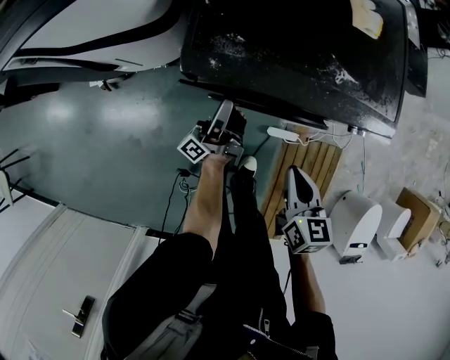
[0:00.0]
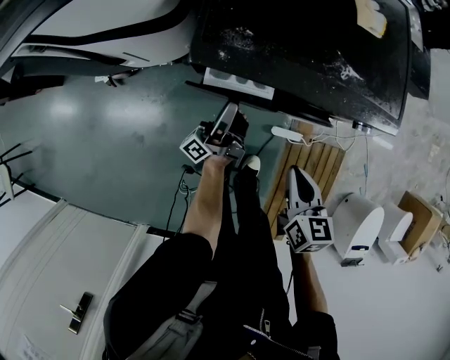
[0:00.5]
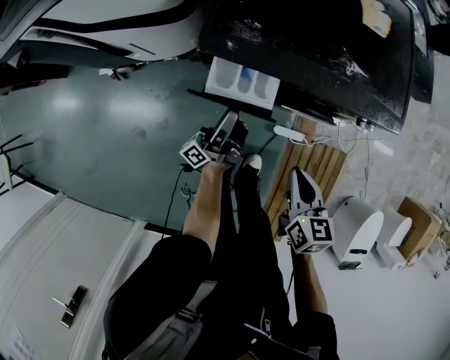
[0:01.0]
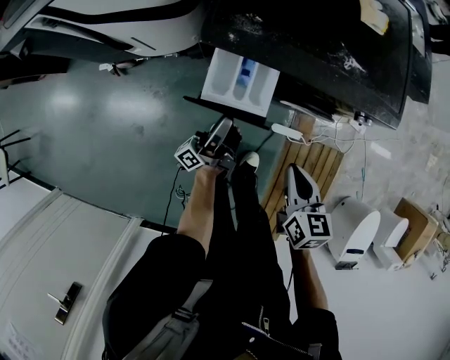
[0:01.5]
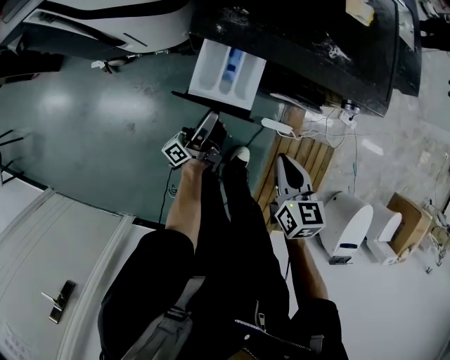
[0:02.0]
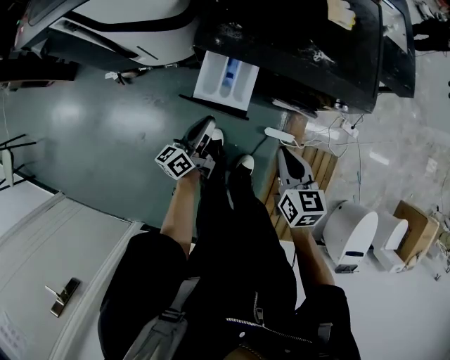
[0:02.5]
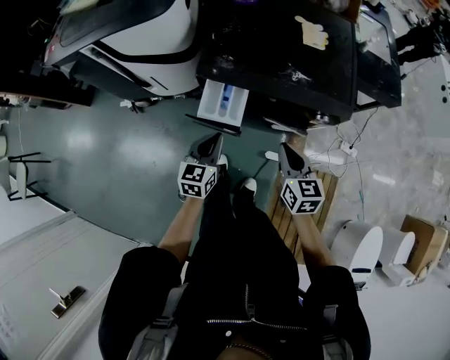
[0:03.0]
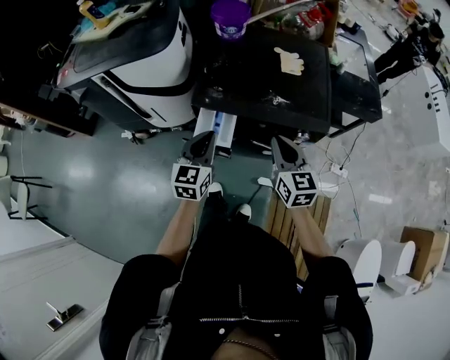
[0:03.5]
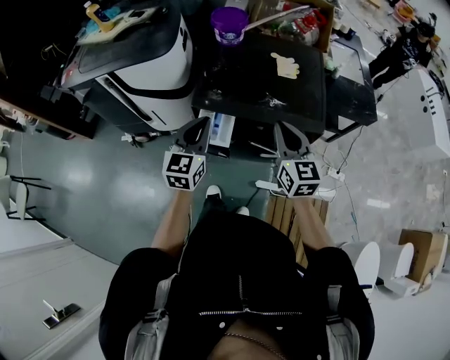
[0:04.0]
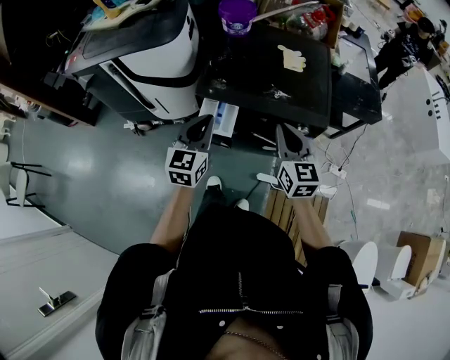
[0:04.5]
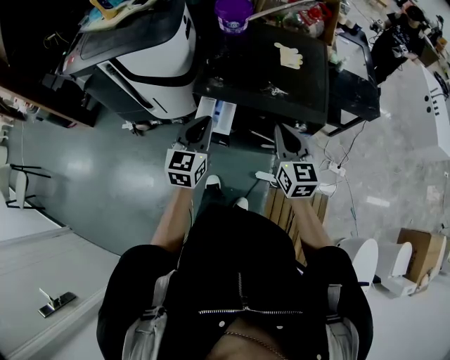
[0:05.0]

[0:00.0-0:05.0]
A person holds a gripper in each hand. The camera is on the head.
0:00.0 to 0:02.5: The right gripper changes place by approximately 5 cm, while the left gripper goes some 15 cm backward, tips its fingers downward by roughly 30 degrees, and closes up.
0:02.5 to 0:05.0: The two grippers go about 25 cm upward. The right gripper changes its angle by about 30 degrees; the left gripper rotates around the line of its fingers by some 50 degrees, clockwise from behind.

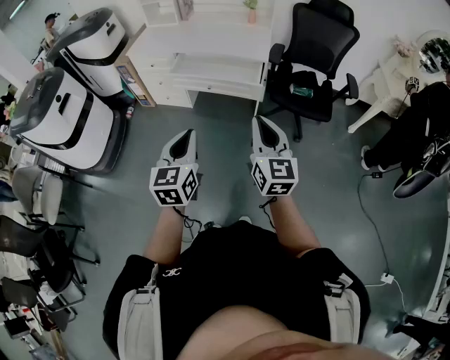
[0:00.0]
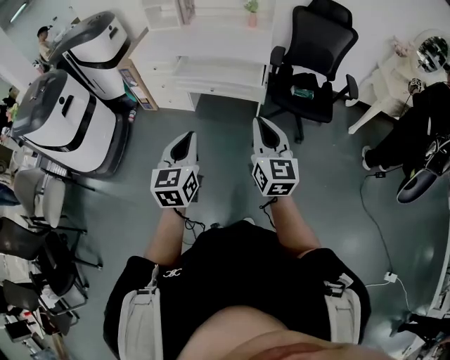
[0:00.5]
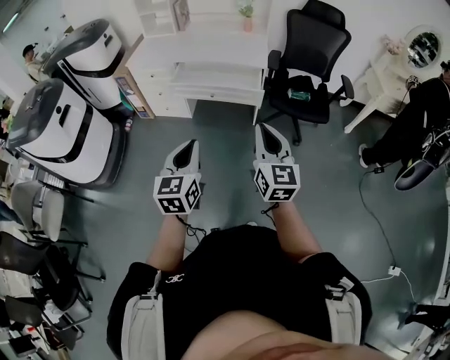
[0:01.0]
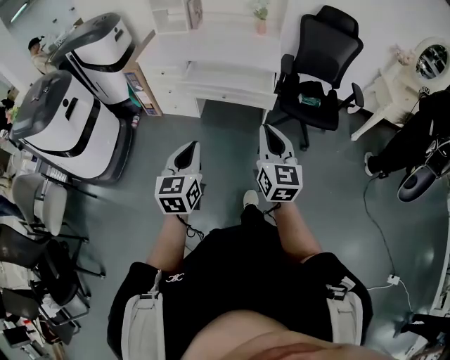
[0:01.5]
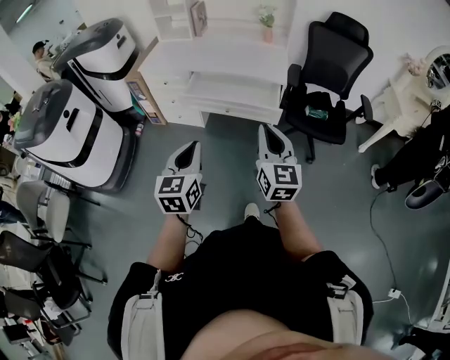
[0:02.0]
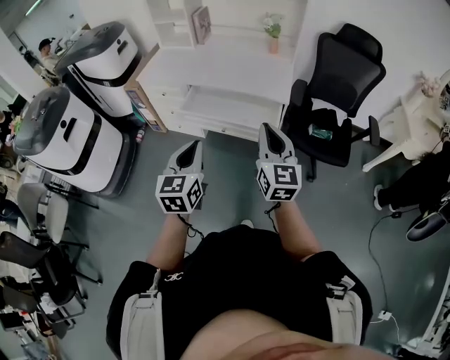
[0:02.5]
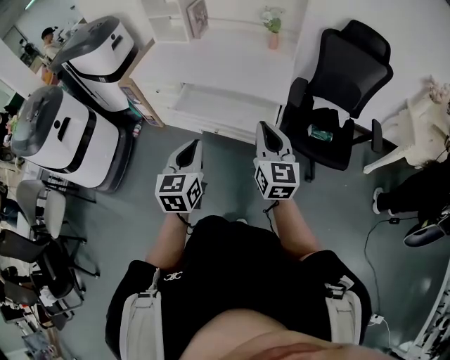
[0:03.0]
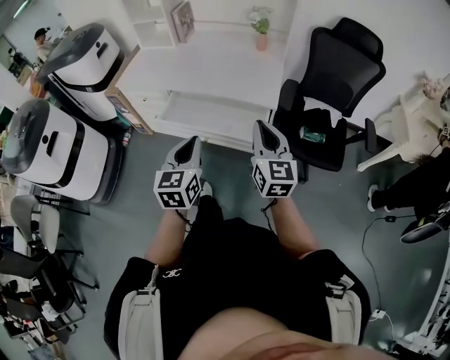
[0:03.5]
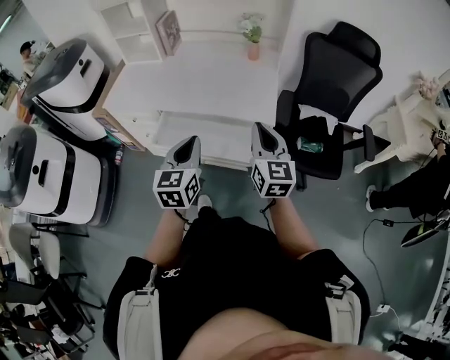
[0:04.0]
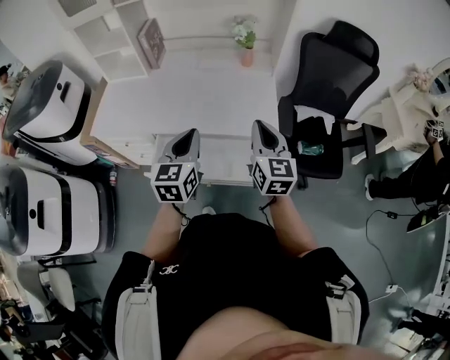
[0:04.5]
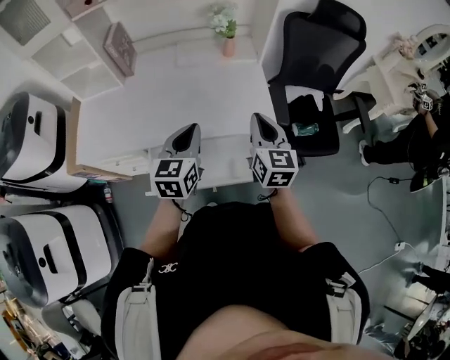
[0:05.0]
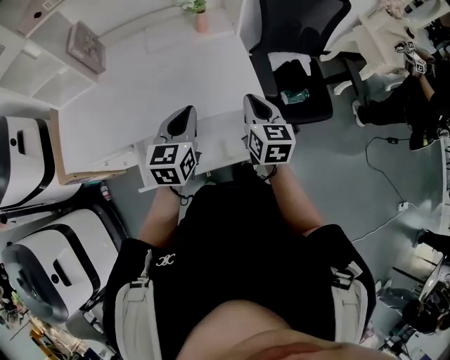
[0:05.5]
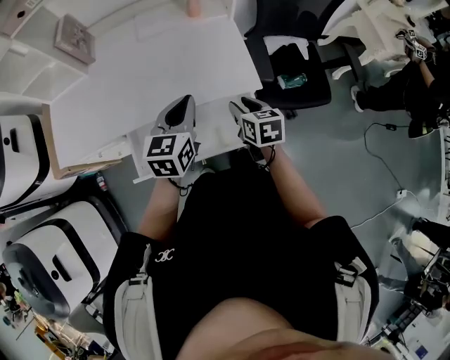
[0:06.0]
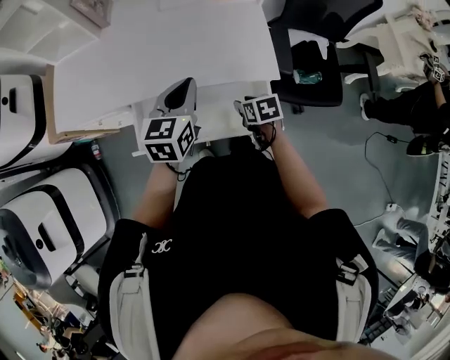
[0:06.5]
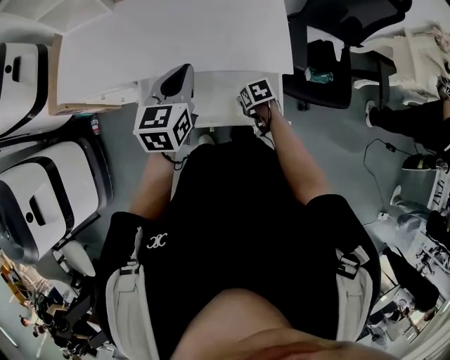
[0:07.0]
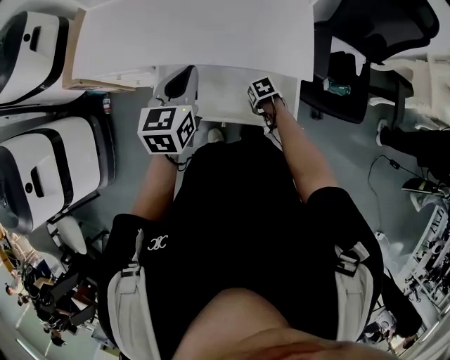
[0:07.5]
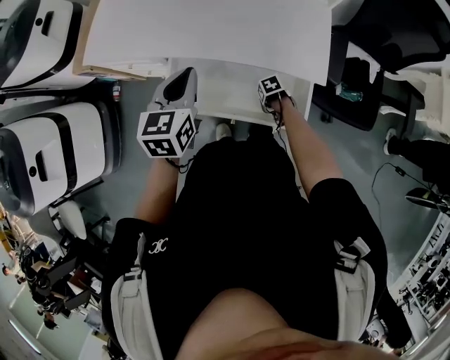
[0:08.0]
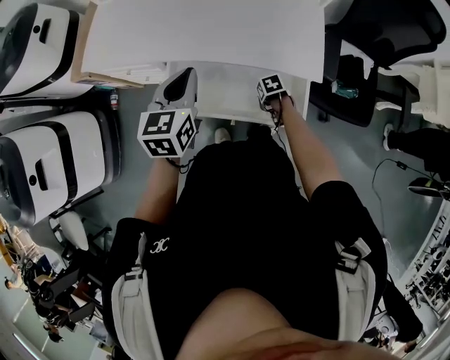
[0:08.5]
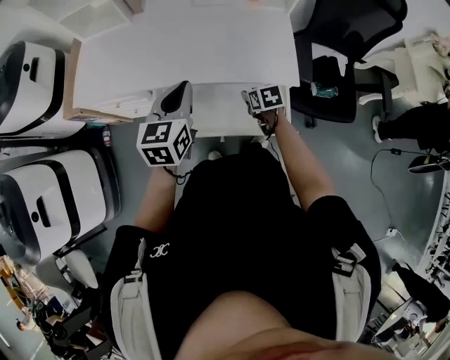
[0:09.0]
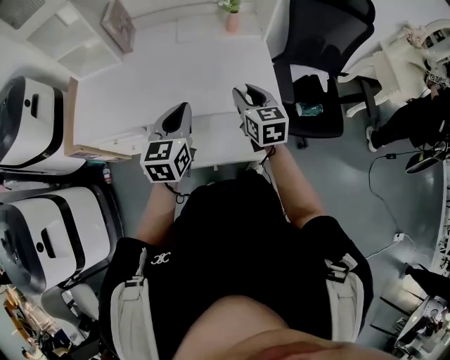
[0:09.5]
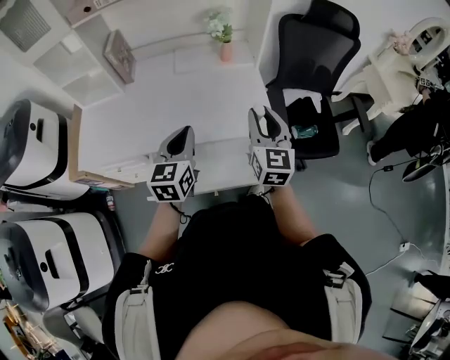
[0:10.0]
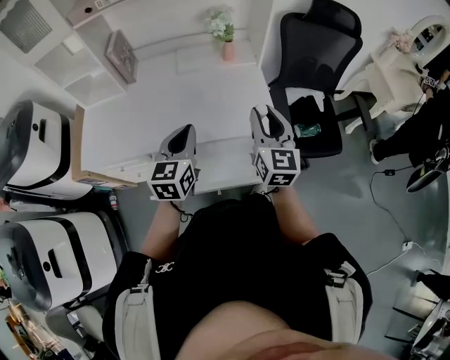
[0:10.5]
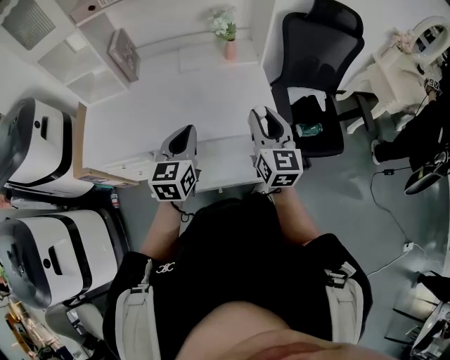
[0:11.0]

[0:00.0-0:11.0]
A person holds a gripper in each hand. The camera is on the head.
0:00.0 to 0:02.0: The right gripper shifts roughly 10 cm forward and to the left, while the left gripper is displaced to the left and forward by approximately 15 cm.
0:02.0 to 0:03.5: The grippers both shift forward and to the right by roughly 30 cm.
0:03.5 to 0:05.5: The left gripper moves roughly 40 cm, and changes its angle by some 30 degrees; the right gripper moves about 30 cm, and turns by approximately 30 degrees.
0:05.5 to 0:07.5: The left gripper changes place by some 10 cm. The right gripper goes some 35 cm downward, tilts its fingers about 60 degrees downward, and opens up.
0:07.5 to 0:09.0: The right gripper travels upward by approximately 15 cm, and swivels approximately 30 degrees.
0:09.0 to 0:11.0: The right gripper moves upward, approximately 30 cm, and angles its fingers upward, by roughly 50 degrees, while the left gripper moves approximately 5 cm.

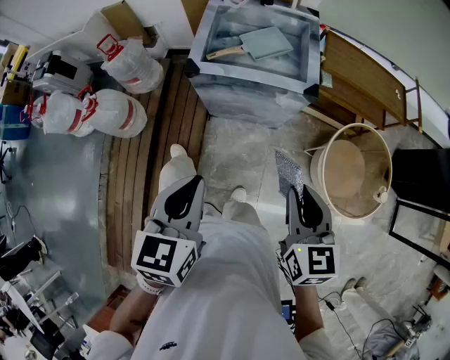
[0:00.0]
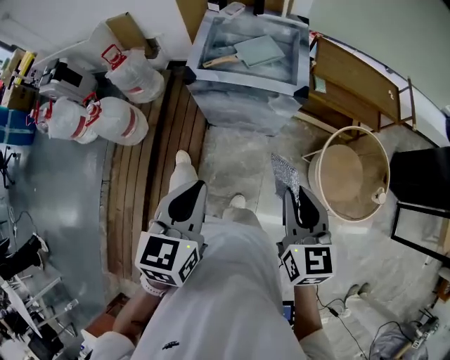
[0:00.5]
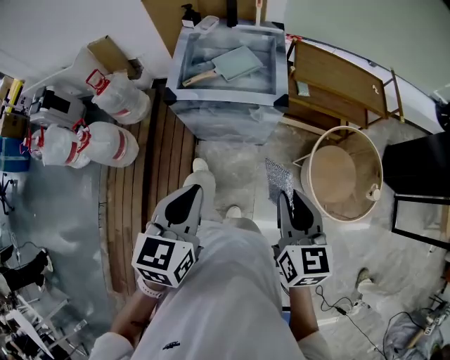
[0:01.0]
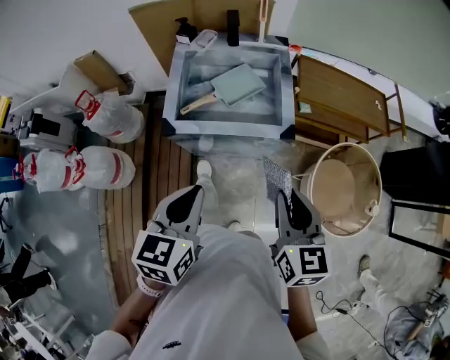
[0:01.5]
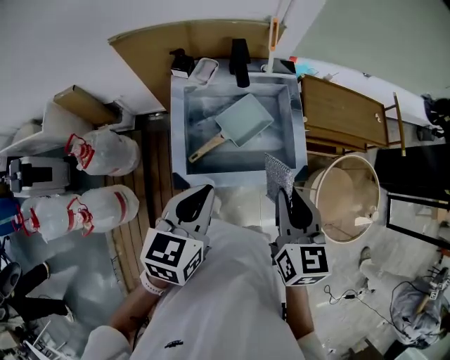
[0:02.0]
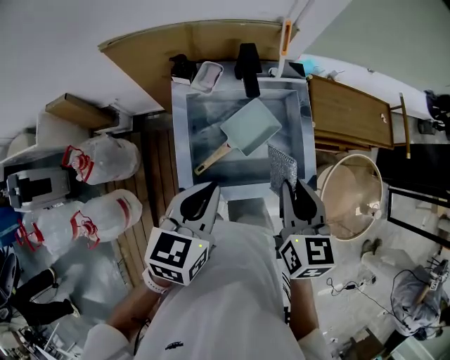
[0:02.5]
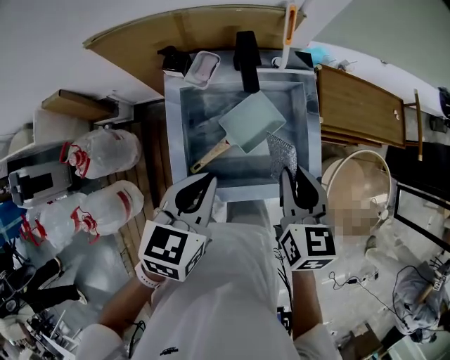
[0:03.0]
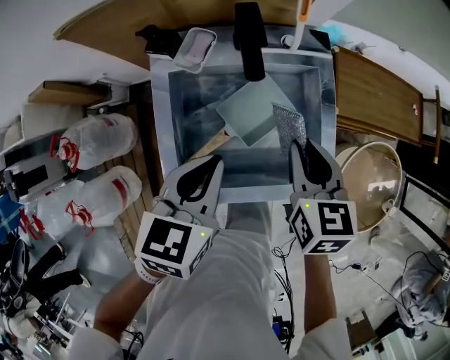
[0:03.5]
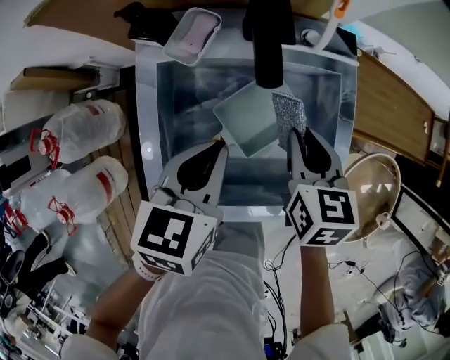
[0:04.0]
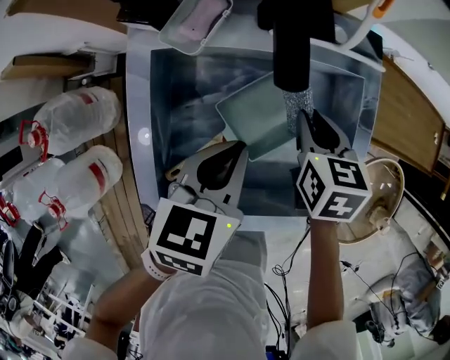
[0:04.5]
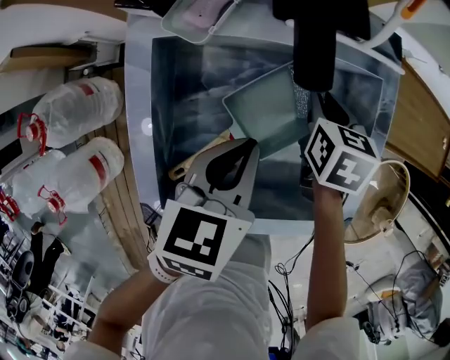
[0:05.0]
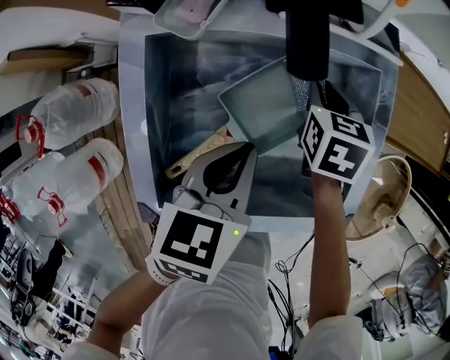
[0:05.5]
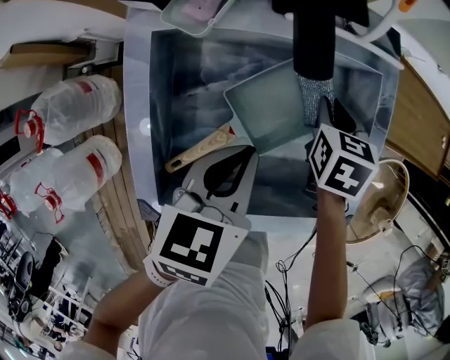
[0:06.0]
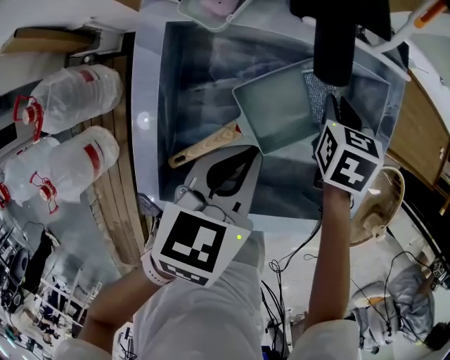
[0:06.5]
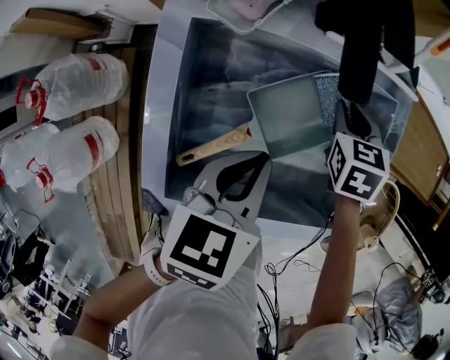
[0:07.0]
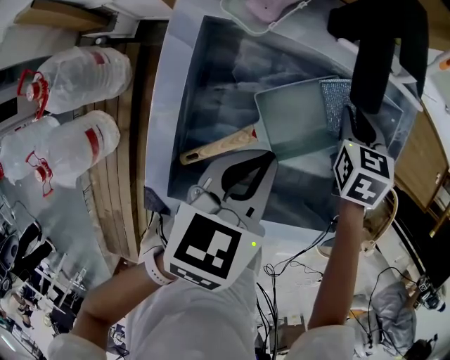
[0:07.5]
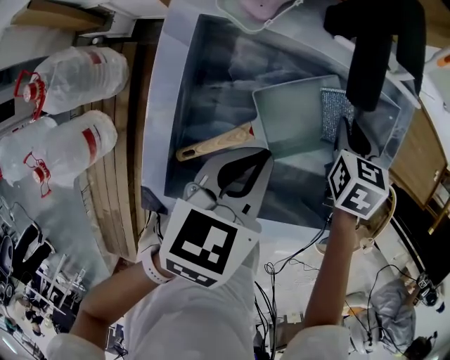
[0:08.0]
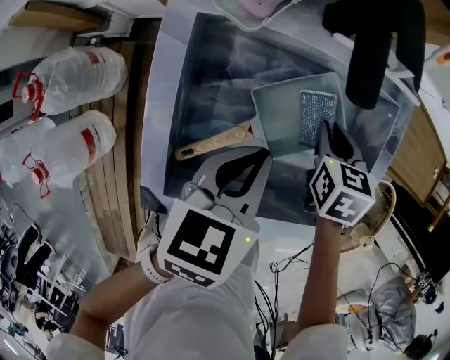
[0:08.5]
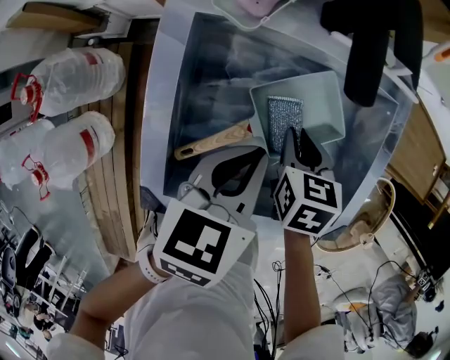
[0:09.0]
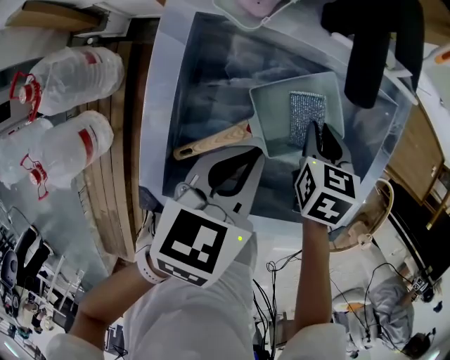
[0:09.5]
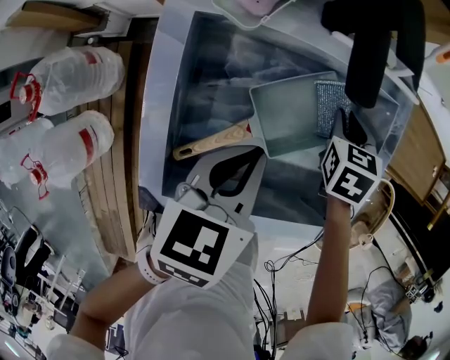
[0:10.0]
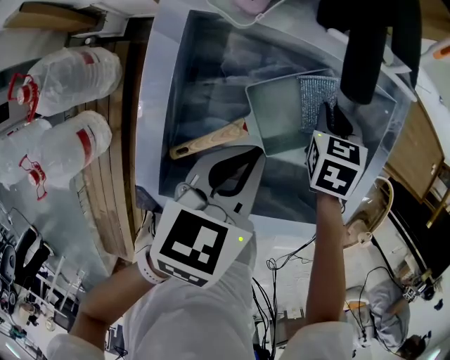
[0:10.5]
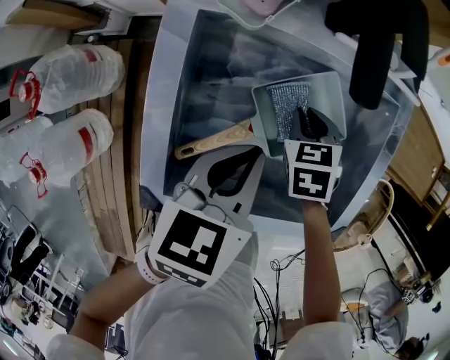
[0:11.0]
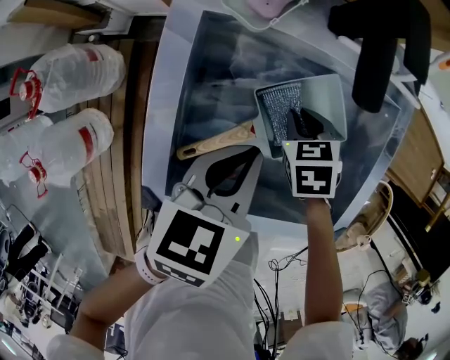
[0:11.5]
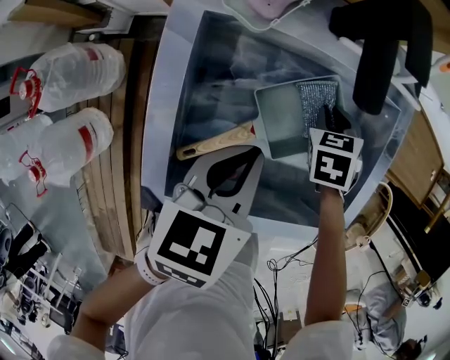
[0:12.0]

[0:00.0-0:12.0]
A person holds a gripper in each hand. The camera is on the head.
0:00.0 to 0:02.0: The two grippers go approximately 35 cm forward. The left gripper changes its angle by roughly 20 degrees.
0:02.0 to 0:04.0: The two grippers go some 30 cm forward and downward.
0:04.0 to 0:06.0: The right gripper is displaced downward and forward by some 15 cm, while the left gripper goes approximately 5 cm downward.
0:06.0 to 0:08.0: The grippers move only a little.
0:08.0 to 0:10.0: The right gripper travels backward and back again, some 10 cm each way.
